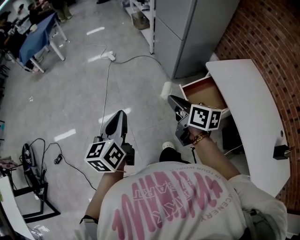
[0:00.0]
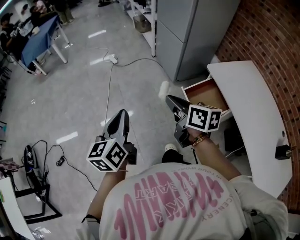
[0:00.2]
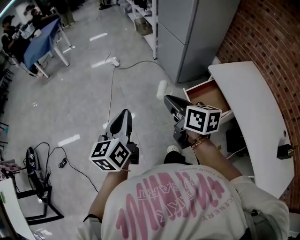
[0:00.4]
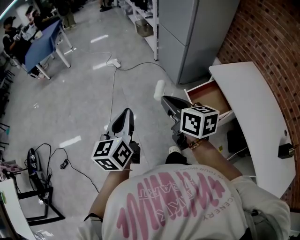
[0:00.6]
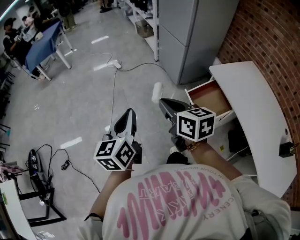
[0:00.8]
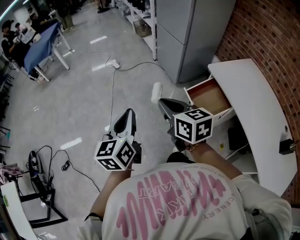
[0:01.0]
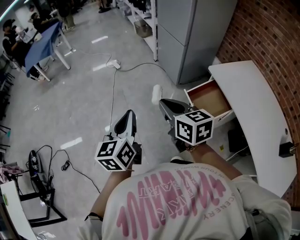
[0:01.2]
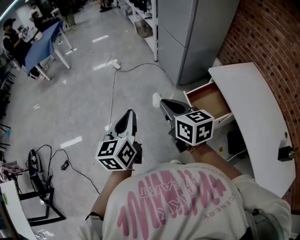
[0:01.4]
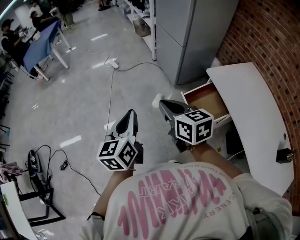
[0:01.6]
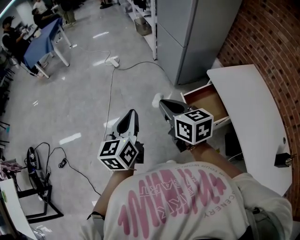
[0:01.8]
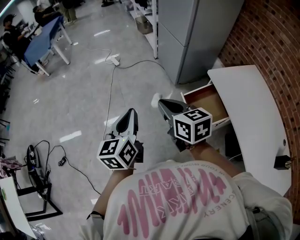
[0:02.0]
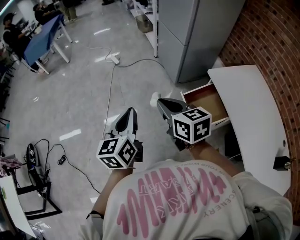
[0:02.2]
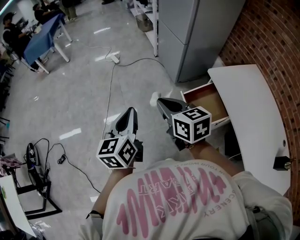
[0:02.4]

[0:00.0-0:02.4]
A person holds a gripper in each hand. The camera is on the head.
0:00.0 to 0:01.2: The right gripper travels to the left and upward by approximately 10 cm, and changes its angle by approximately 20 degrees.
0:01.2 to 0:02.4: Both grippers travel together to the right, about 5 cm.

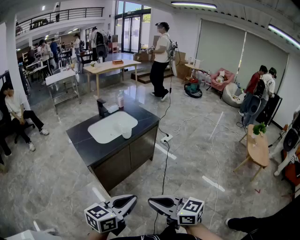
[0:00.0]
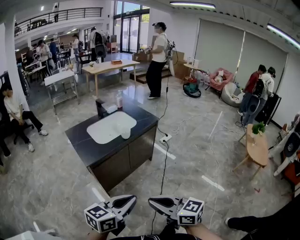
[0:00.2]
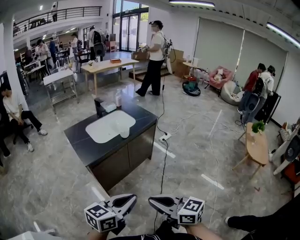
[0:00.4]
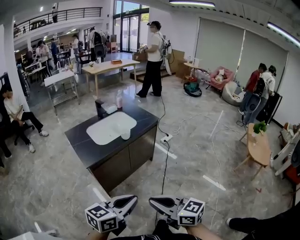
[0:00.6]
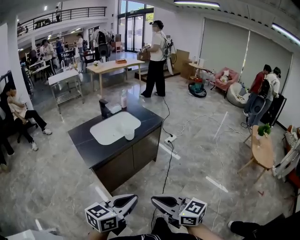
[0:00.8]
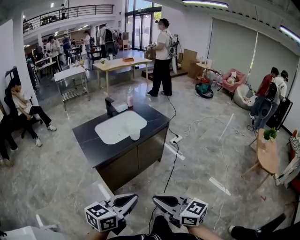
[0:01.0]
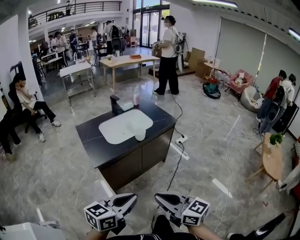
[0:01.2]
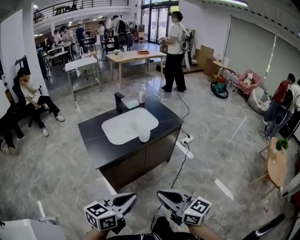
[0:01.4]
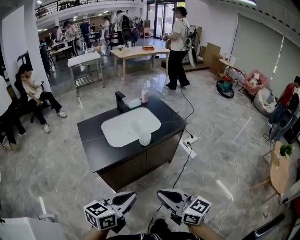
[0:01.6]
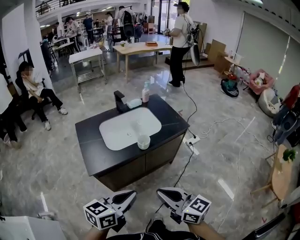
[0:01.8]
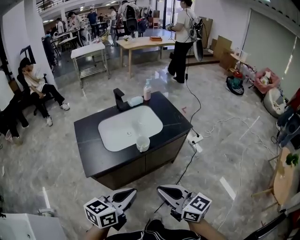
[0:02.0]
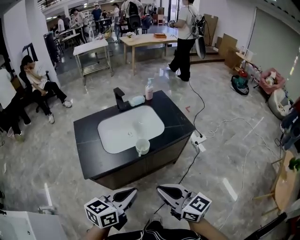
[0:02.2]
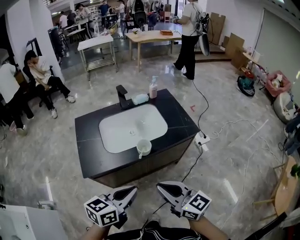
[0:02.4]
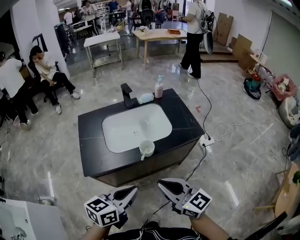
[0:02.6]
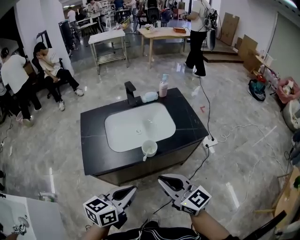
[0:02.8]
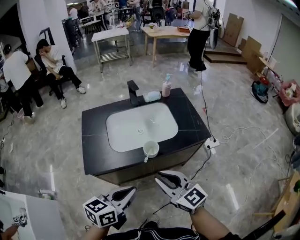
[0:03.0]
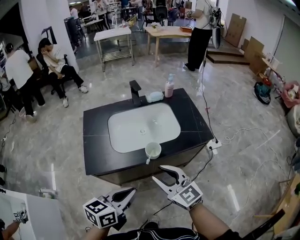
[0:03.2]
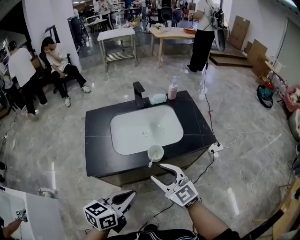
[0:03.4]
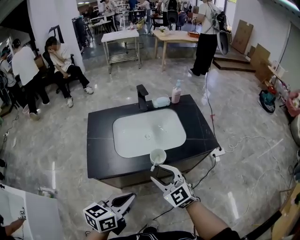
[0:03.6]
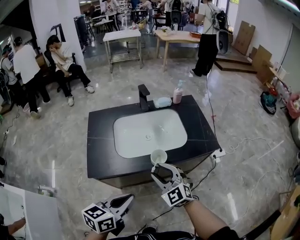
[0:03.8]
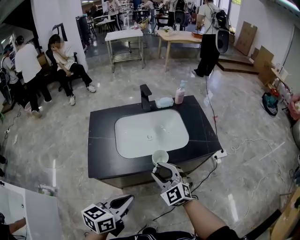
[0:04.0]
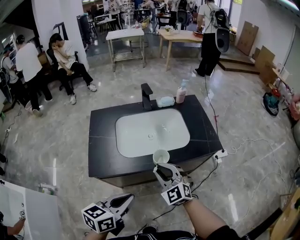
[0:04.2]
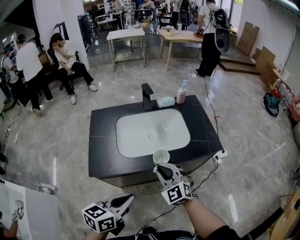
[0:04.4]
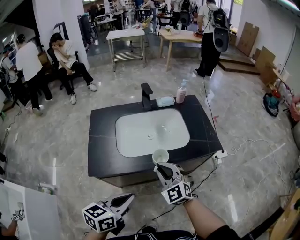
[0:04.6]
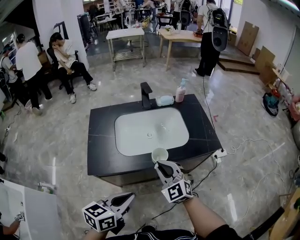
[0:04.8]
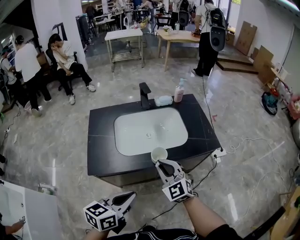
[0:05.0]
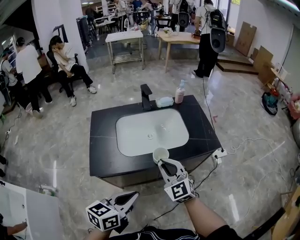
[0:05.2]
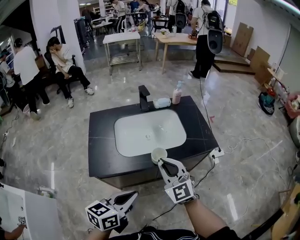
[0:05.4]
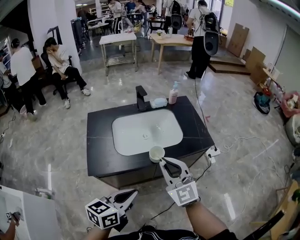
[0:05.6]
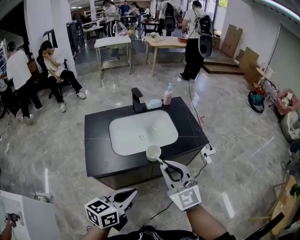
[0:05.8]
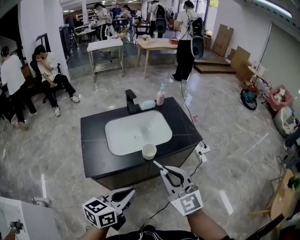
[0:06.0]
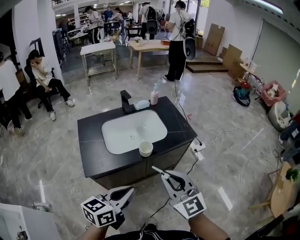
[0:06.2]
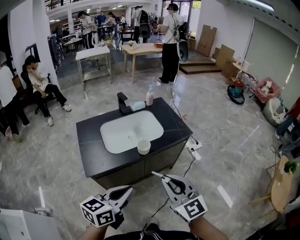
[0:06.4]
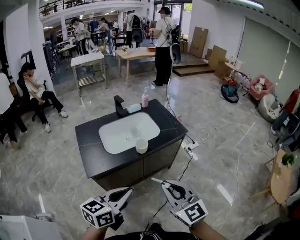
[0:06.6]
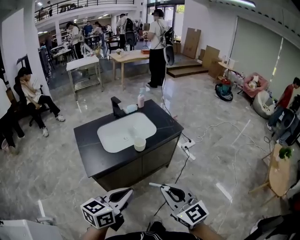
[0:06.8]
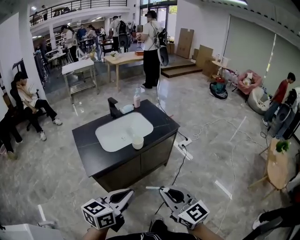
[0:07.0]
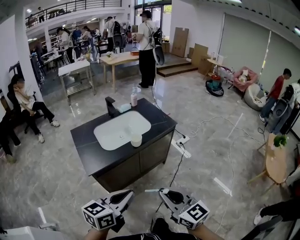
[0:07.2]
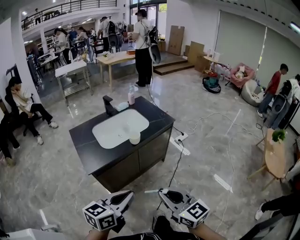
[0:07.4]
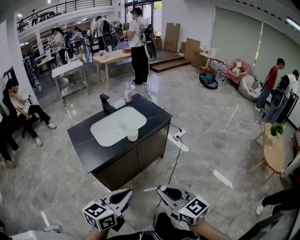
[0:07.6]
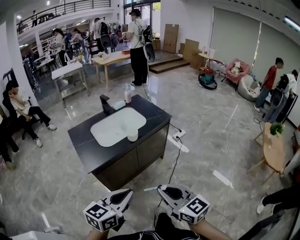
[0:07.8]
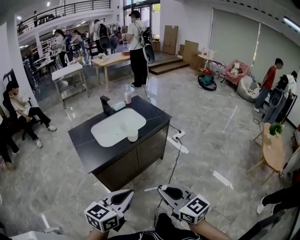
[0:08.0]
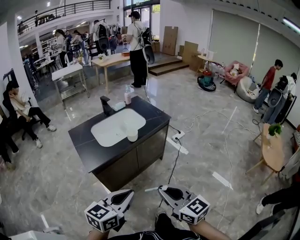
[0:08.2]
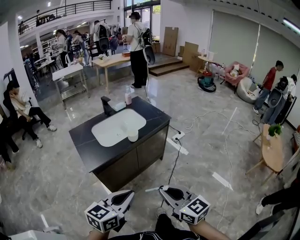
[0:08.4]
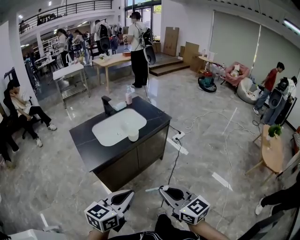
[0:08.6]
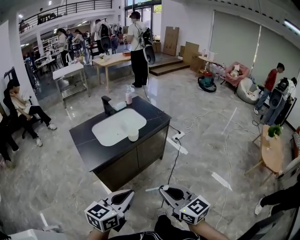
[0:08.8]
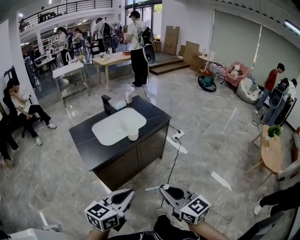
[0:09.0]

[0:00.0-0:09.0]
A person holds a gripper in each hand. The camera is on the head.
0:00.0 to 0:01.6: Both grippers travel together forward, roughly 15 cm.
0:01.6 to 0:03.0: The grippers both shift forward by approximately 15 cm. The right gripper changes its angle by about 30 degrees.
0:03.0 to 0:04.4: The right gripper travels forward and downward by some 10 cm, turns by about 30 degrees, and opens, then closes again.
0:04.4 to 0:06.0: The left gripper is displaced upward by roughly 5 cm. The right gripper shifts about 20 cm upward and backward, and swivels roughly 30 degrees.
0:06.0 to 0:07.6: The left gripper shifts some 15 cm backward. Meanwhile the right gripper moves backward, some 25 cm, and changes its angle by about 30 degrees.
0:07.6 to 0:09.0: The grippers stay close to where they were, moving slightly.

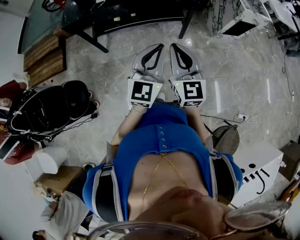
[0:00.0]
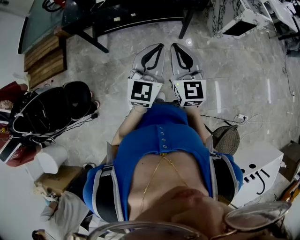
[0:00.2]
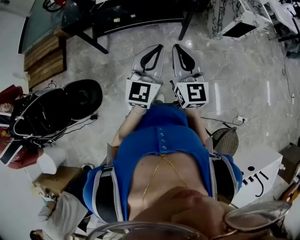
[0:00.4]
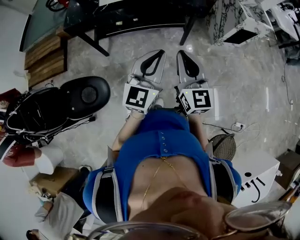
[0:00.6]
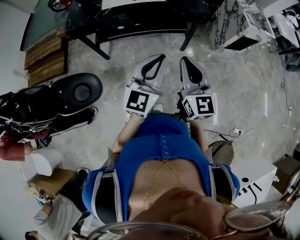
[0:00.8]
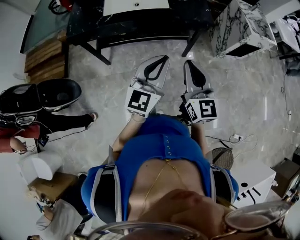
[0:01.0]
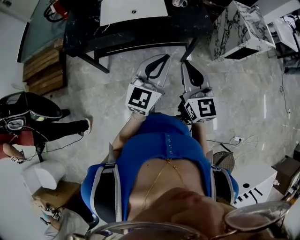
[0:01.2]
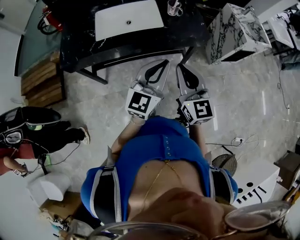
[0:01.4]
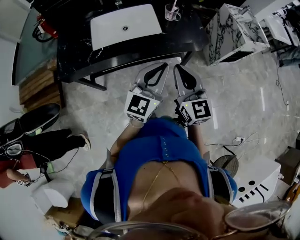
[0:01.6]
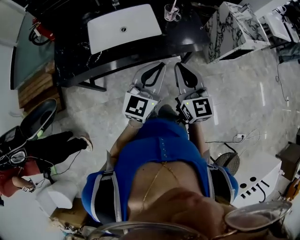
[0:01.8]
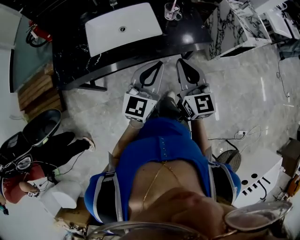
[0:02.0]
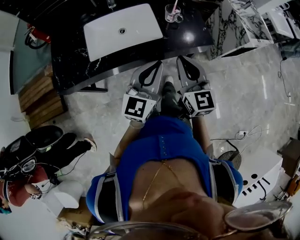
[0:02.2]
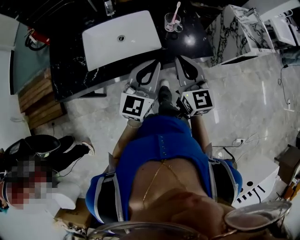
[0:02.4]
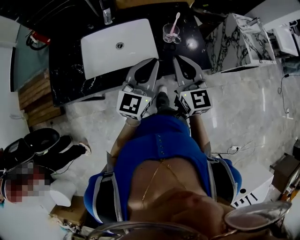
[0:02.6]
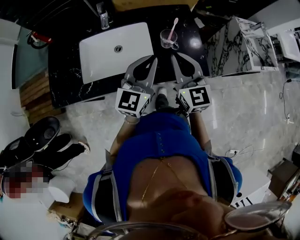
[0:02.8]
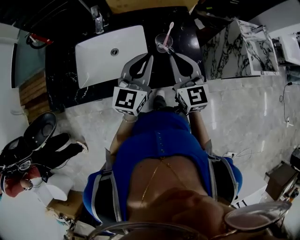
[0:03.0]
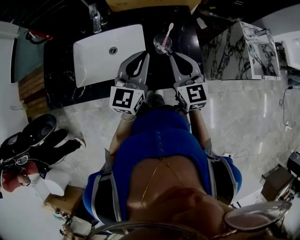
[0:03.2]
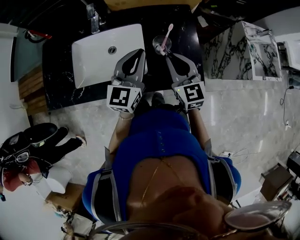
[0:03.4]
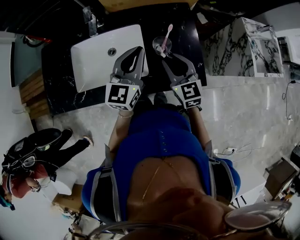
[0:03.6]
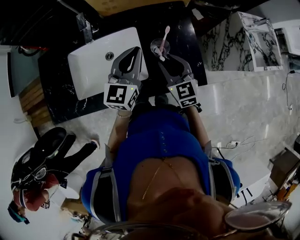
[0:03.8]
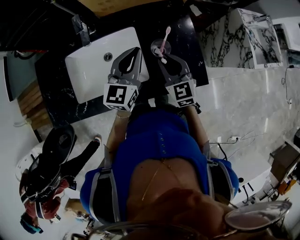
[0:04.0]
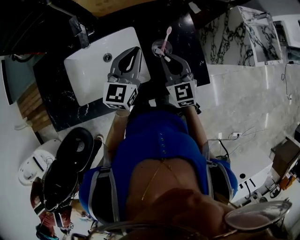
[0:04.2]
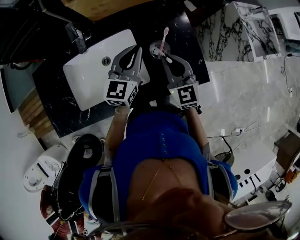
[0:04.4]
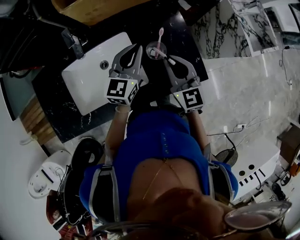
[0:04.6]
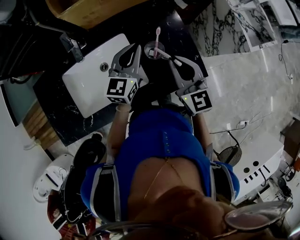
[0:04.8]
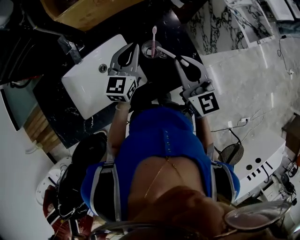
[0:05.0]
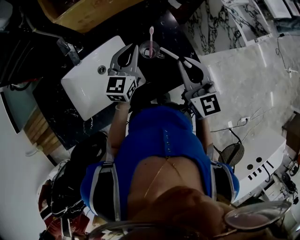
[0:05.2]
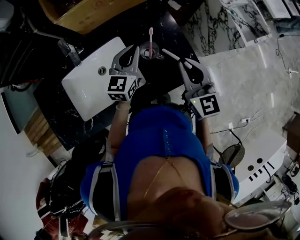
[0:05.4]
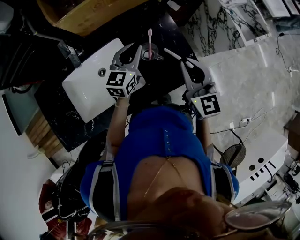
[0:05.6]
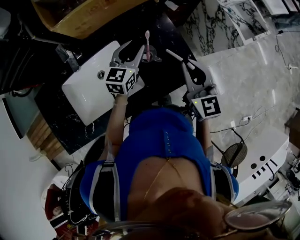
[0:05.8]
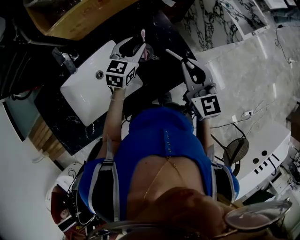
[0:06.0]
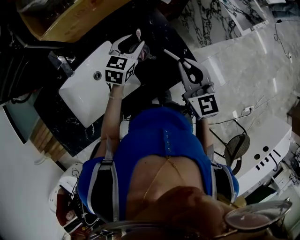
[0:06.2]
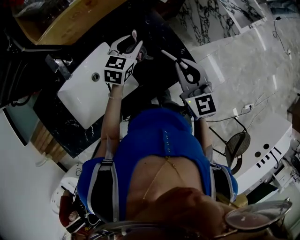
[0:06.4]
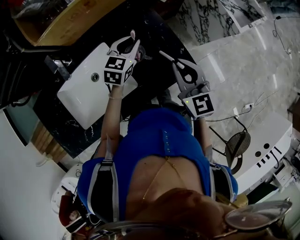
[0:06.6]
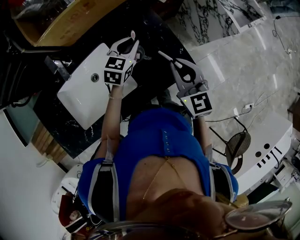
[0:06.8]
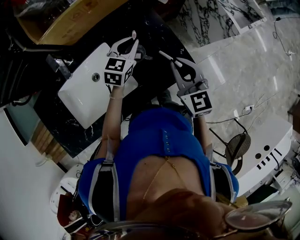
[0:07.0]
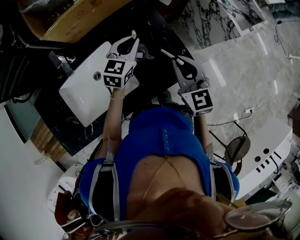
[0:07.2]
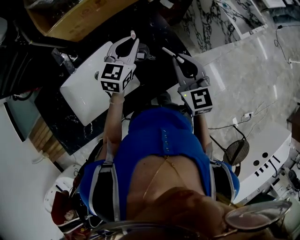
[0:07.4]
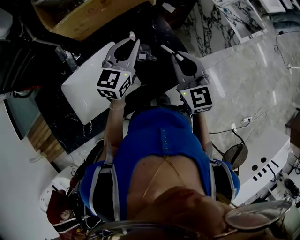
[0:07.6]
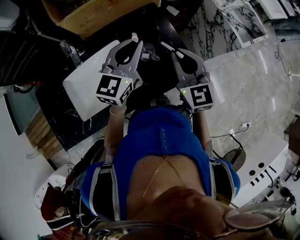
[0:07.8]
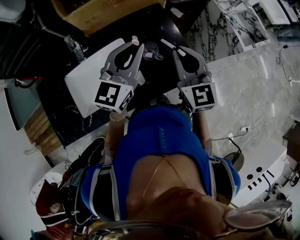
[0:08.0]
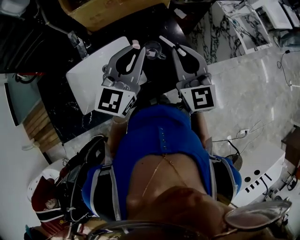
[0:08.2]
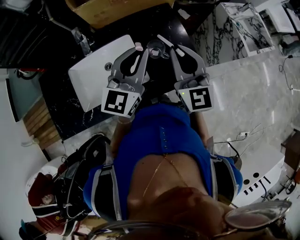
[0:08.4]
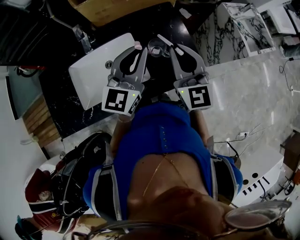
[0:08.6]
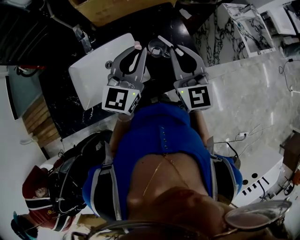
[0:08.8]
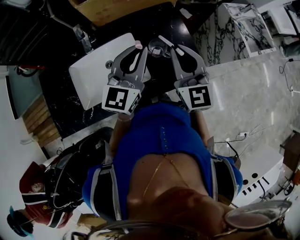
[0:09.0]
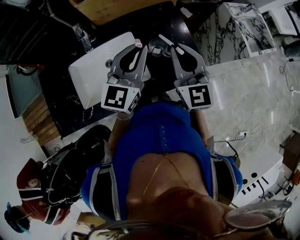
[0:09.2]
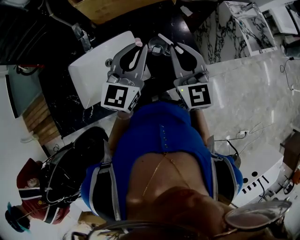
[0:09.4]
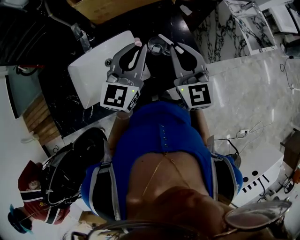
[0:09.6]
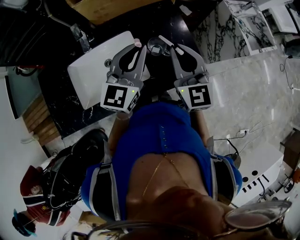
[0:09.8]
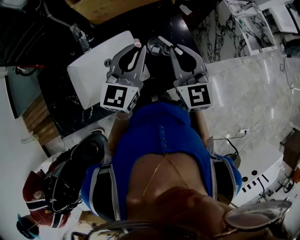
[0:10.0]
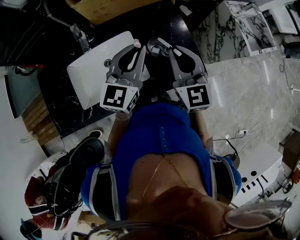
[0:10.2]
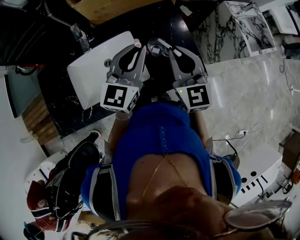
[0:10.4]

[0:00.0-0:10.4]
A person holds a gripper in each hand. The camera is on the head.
0:00.0 to 0:01.4: Both grippers move forward, some 20 cm.
0:01.4 to 0:03.0: The two grippers go roughly 40 cm forward.
0:03.0 to 0:04.4: The right gripper travels downward and forward by approximately 15 cm, and opens and closes again; the left gripper goes some 15 cm forward and downward.
0:04.4 to 0:06.0: The left gripper is displaced to the right and downward by some 10 cm, rotates some 20 degrees, and opens up, while the right gripper heads to the right and upward, covering roughly 15 cm.
0:06.0 to 0:07.4: The left gripper is displaced upward by about 5 cm, and closes.
0:07.4 to 0:09.0: The left gripper goes roughly 15 cm upward, backward and to the left, and rotates about 20 degrees. Meanwhile the right gripper is displaced to the left and upward by roughly 10 cm.
0:09.0 to 0:10.4: The grippers move only a little.

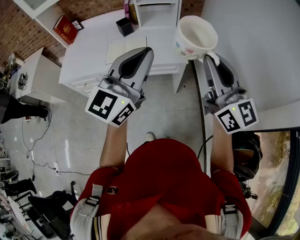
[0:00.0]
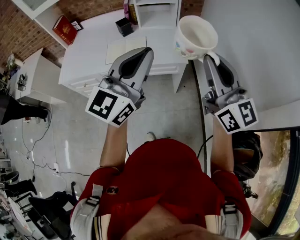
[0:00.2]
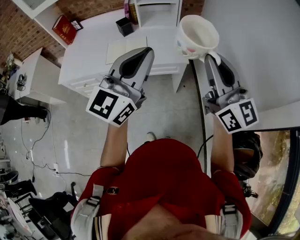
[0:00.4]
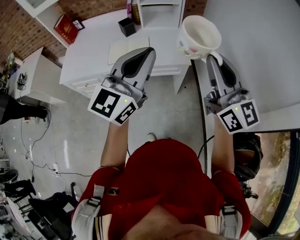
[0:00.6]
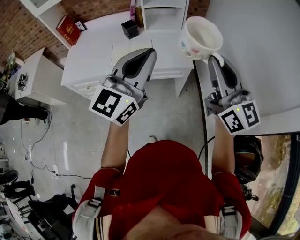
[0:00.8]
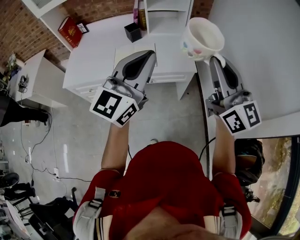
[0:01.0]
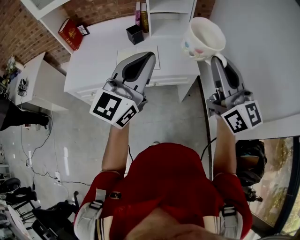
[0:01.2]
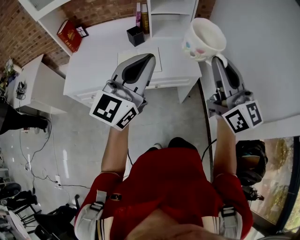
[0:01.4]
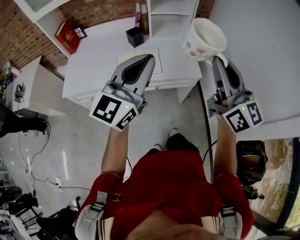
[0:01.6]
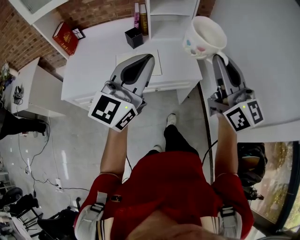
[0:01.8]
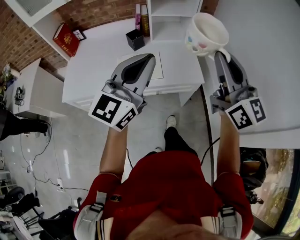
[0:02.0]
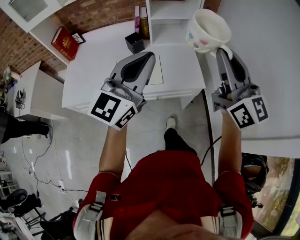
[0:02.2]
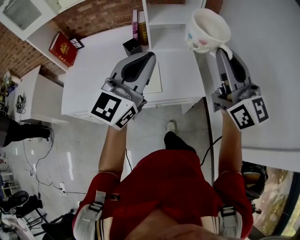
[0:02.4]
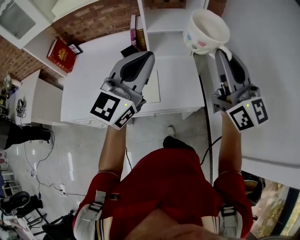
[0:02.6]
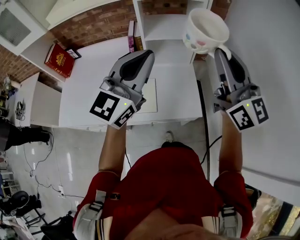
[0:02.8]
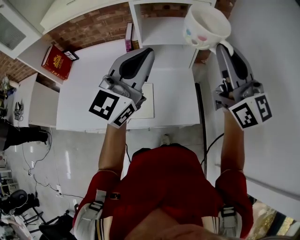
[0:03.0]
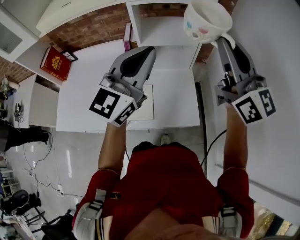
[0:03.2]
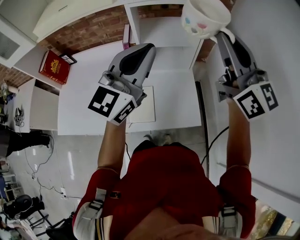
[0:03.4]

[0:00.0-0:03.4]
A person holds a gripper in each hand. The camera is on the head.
0:00.0 to 0:01.6: The two grippers go roughly 15 cm to the left and forward.
0:01.6 to 0:03.4: Both grippers travel together forward, about 35 cm.
